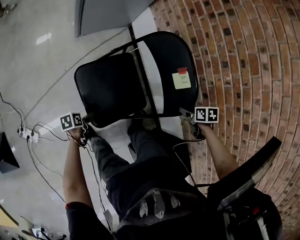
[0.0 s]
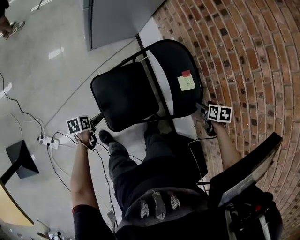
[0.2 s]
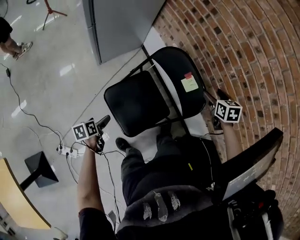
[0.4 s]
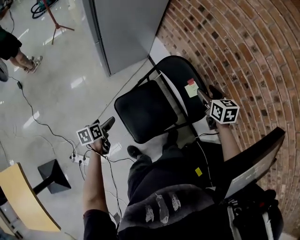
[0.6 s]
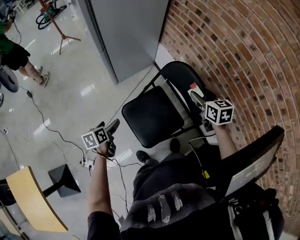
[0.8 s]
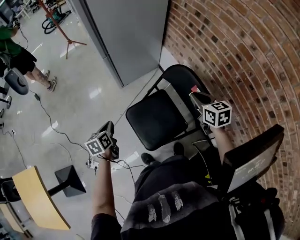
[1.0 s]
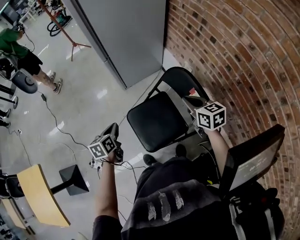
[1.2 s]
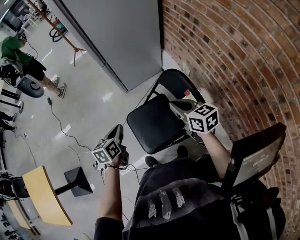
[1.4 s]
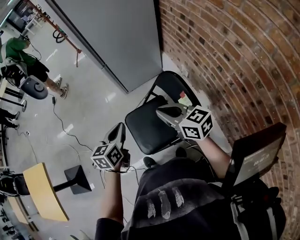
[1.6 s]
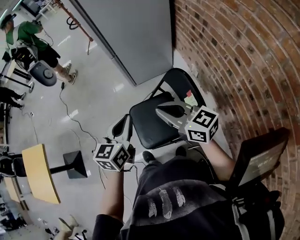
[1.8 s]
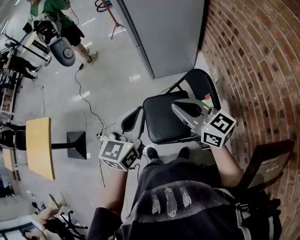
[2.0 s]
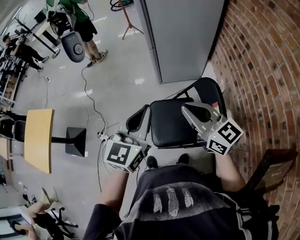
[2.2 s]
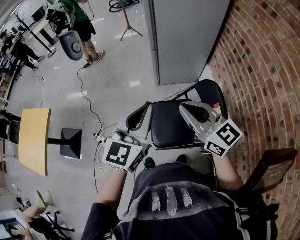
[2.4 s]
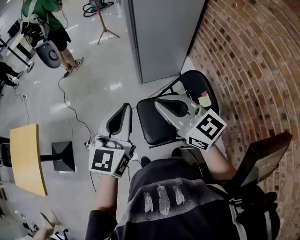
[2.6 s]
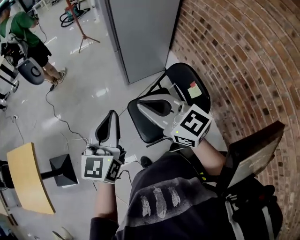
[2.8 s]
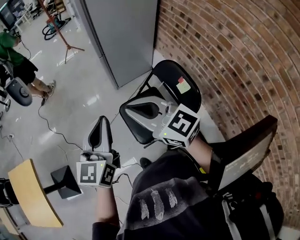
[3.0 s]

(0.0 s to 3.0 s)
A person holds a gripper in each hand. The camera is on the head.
0.0 s - 1.6 s: The right gripper shifts approximately 30 cm upward, points its fingers about 60 degrees further upward, and closes up. Meanwhile the left gripper moves upward, about 50 cm, rotates some 60 degrees, and closes its fingers.
1.6 s - 3.0 s: The left gripper travels upward, to the left and backward by some 20 cm, and swivels some 30 degrees; the right gripper is displaced to the left and upward by approximately 25 cm, and swivels roughly 20 degrees.

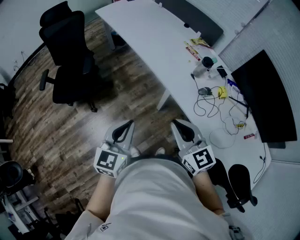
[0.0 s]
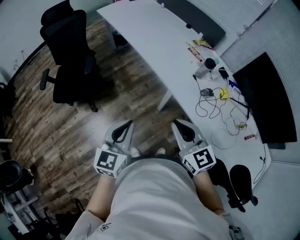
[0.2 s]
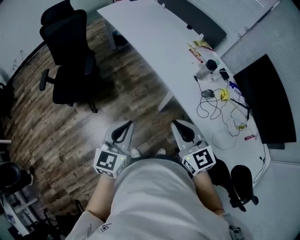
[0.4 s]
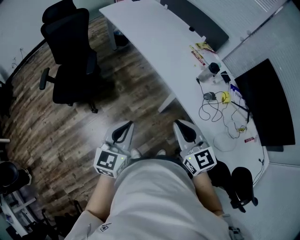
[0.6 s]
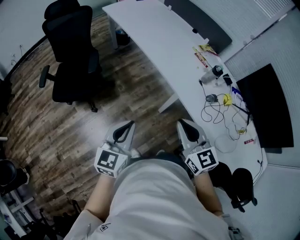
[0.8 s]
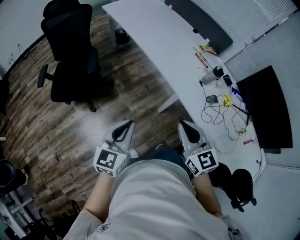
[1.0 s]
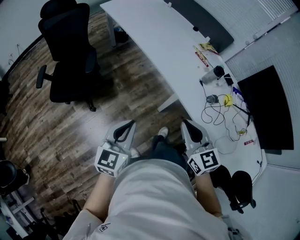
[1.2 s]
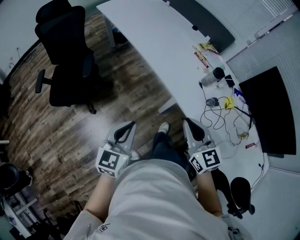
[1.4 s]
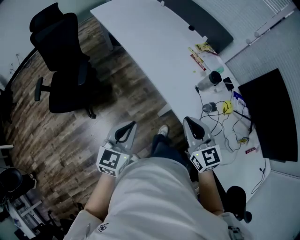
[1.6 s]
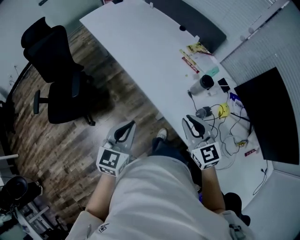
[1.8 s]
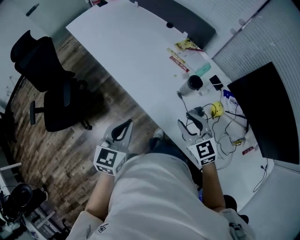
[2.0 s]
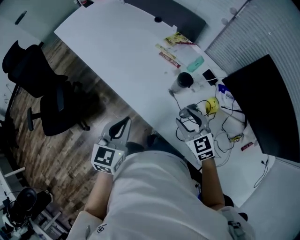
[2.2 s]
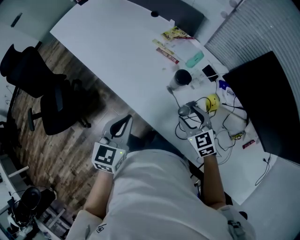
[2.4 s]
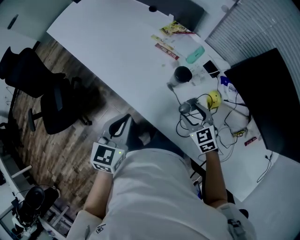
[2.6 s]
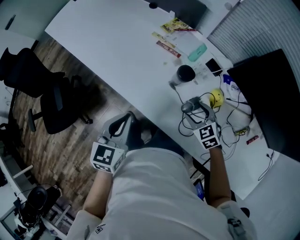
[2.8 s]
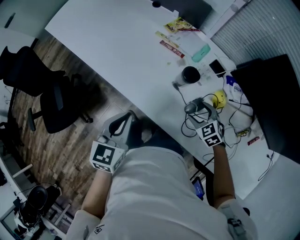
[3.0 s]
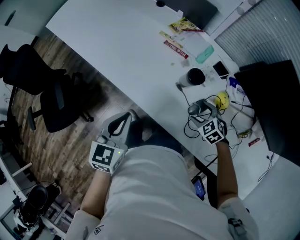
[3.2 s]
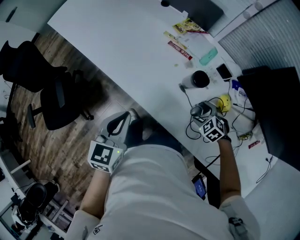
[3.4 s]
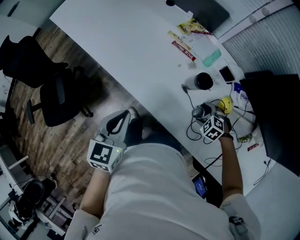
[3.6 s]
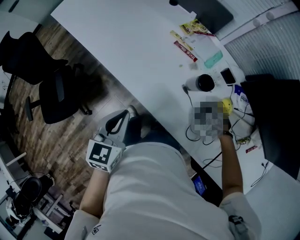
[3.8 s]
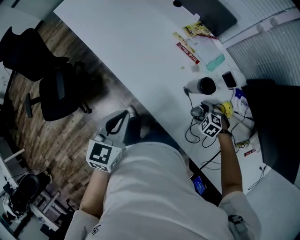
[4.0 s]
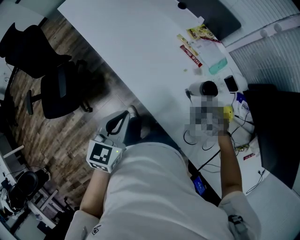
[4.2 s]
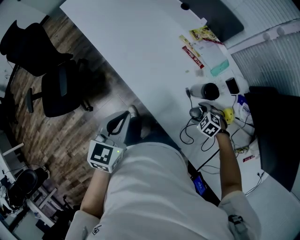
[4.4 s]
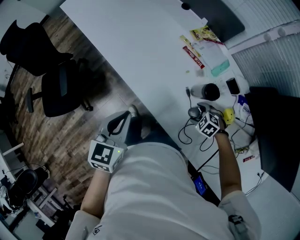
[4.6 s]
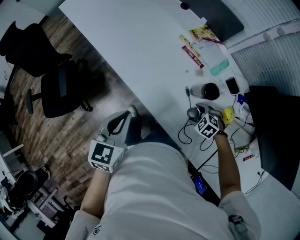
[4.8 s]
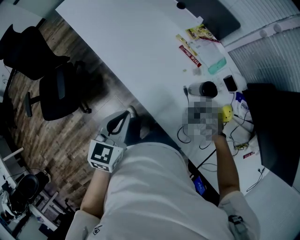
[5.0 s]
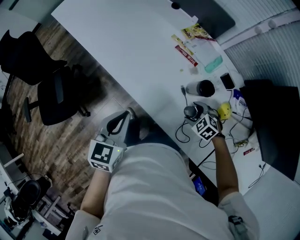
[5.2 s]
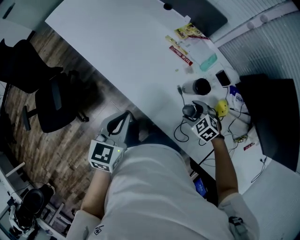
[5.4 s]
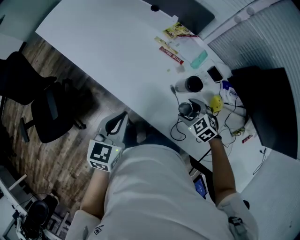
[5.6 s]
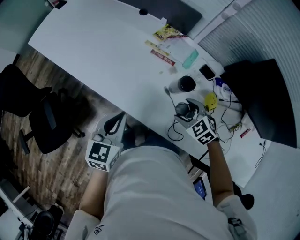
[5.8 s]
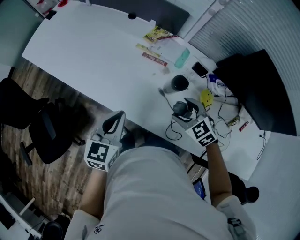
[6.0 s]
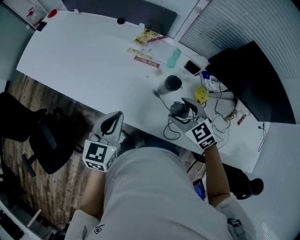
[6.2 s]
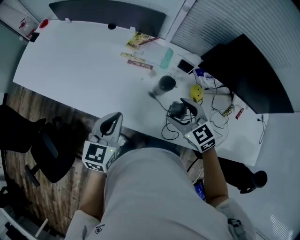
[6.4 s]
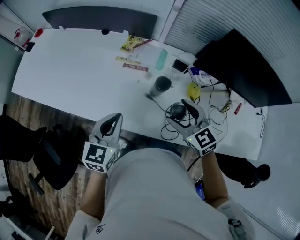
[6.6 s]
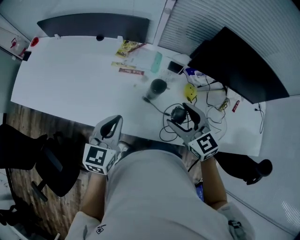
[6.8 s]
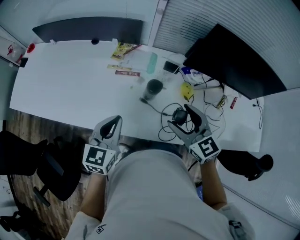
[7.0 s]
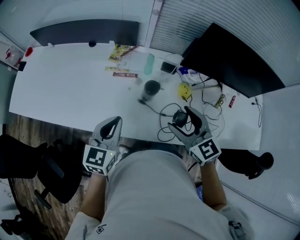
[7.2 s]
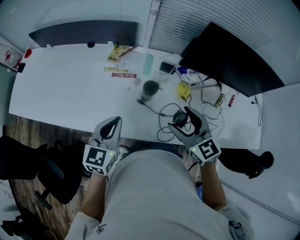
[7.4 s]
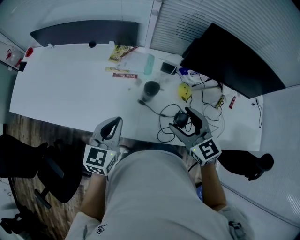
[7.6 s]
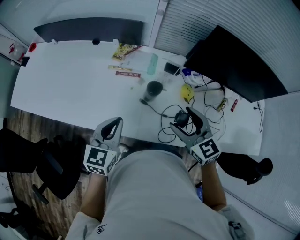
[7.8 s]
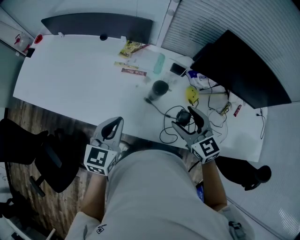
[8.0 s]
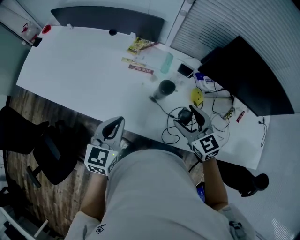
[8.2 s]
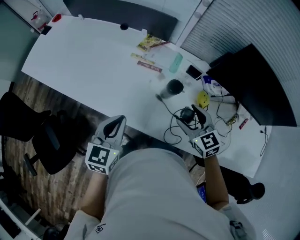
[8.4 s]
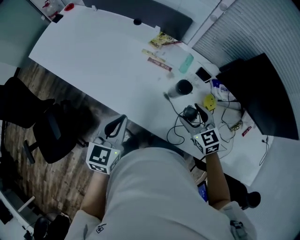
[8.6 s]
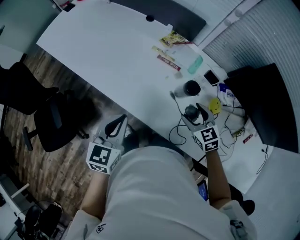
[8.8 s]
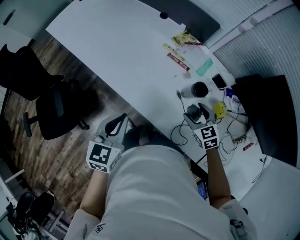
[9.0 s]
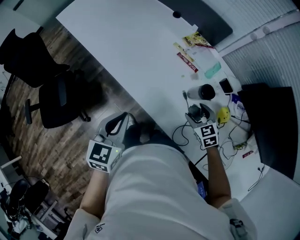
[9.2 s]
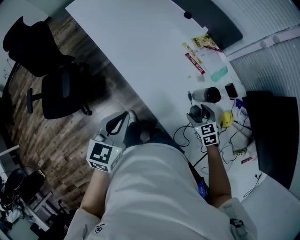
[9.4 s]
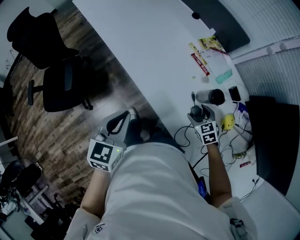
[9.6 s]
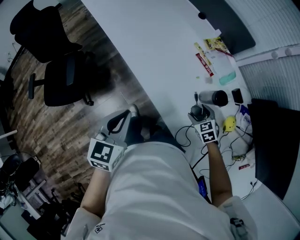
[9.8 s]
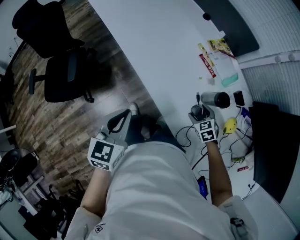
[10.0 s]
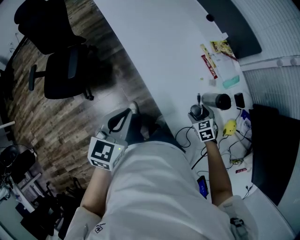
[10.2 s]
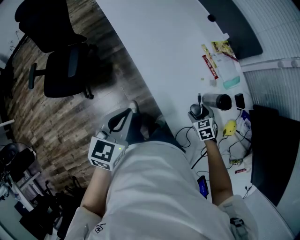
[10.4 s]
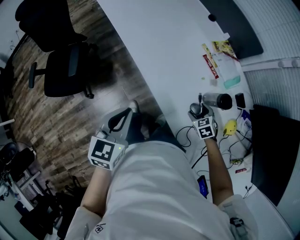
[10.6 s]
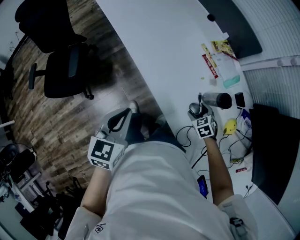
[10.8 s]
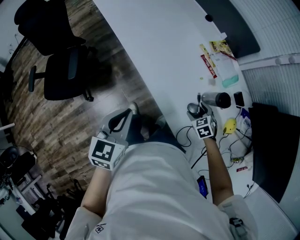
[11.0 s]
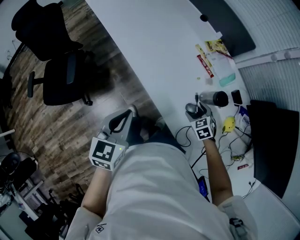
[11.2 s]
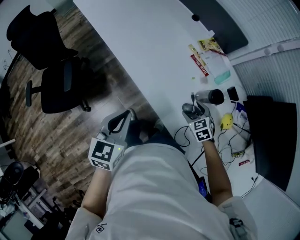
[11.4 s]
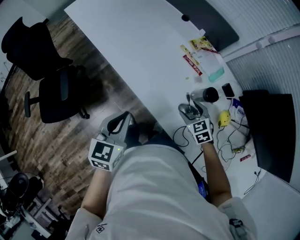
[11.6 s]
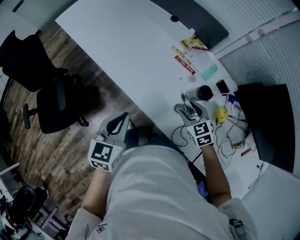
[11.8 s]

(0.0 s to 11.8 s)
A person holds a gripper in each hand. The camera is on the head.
0.0 s - 1.4 s: The grippers both shift forward by roughly 10 cm.
1.4 s - 3.0 s: The right gripper moves to the right, downward and forward, about 40 cm, angles its fingers downward, by roughly 40 degrees, and opens; the left gripper shifts approximately 30 cm forward and to the right.
3.0 s - 4.4 s: The right gripper moves downward, about 10 cm, and changes its angle by some 40 degrees. Meanwhile the left gripper changes place by some 5 cm.
4.4 s - 6.0 s: The left gripper moves some 5 cm, and swivels some 20 degrees. Meanwhile the right gripper travels upward by roughly 20 cm, and changes its angle by approximately 40 degrees.
6.0 s - 7.4 s: The right gripper moves upward, some 15 cm, and changes its angle by about 40 degrees; the left gripper shifts about 5 cm to the right.
7.4 s - 8.8 s: The left gripper is displaced to the left and backward by some 10 cm, and swivels some 30 degrees. Meanwhile the right gripper shifts about 15 cm downward, and turns by about 30 degrees.
8.8 s - 10.4 s: The right gripper goes approximately 15 cm downward, and rotates roughly 30 degrees. The left gripper travels to the left and backward by roughly 10 cm, and swivels roughly 20 degrees.
10.4 s - 11.8 s: The left gripper changes place by roughly 5 cm. The right gripper moves upward, roughly 15 cm, and rotates some 20 degrees.

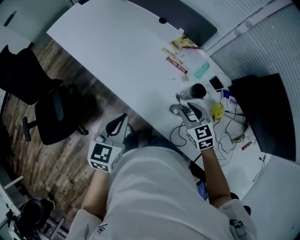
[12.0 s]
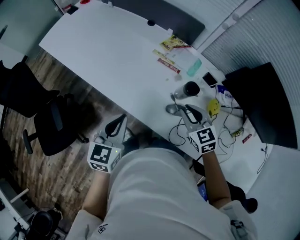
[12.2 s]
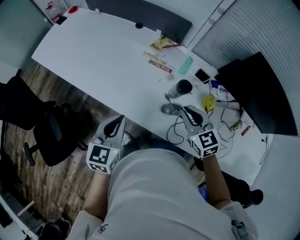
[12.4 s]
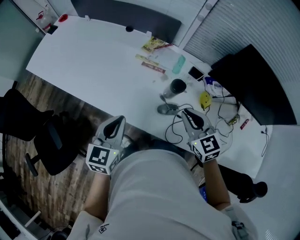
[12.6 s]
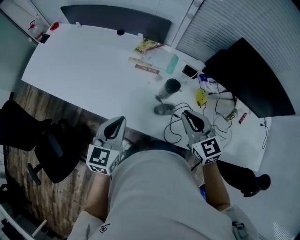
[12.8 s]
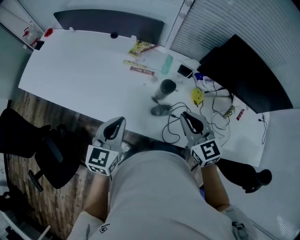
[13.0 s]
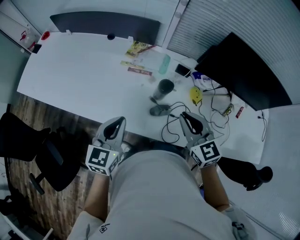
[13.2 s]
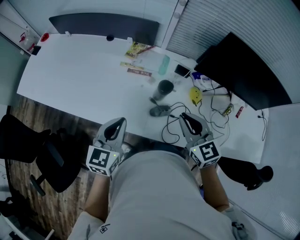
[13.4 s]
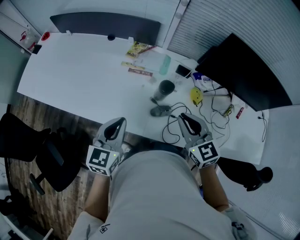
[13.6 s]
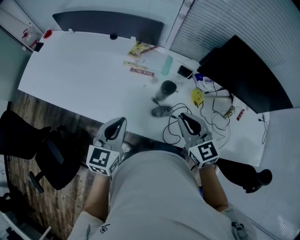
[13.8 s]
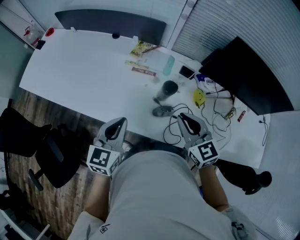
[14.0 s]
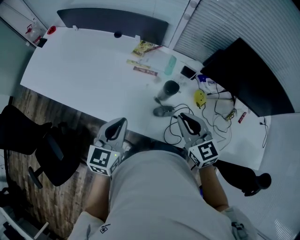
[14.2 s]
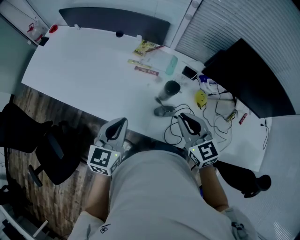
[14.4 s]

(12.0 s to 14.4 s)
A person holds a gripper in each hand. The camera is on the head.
12.0 s - 13.2 s: The right gripper goes approximately 15 cm upward, to the right and backward, swivels about 30 degrees, and closes its fingers. Meanwhile the left gripper heads to the right and forward, covering about 10 cm, and swivels roughly 20 degrees.
13.2 s - 14.4 s: The grippers move only a little.

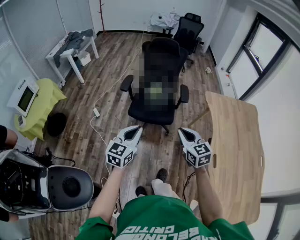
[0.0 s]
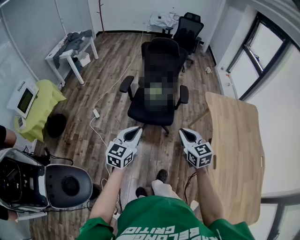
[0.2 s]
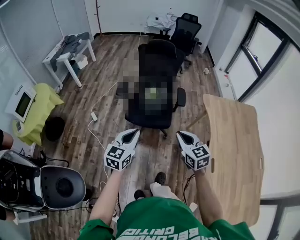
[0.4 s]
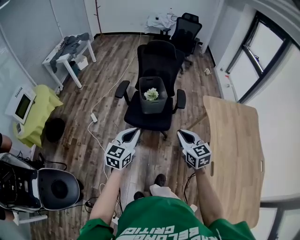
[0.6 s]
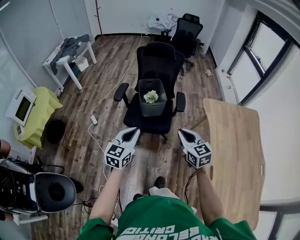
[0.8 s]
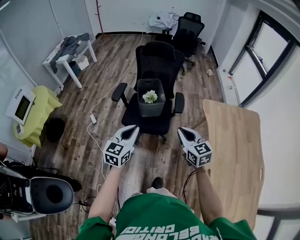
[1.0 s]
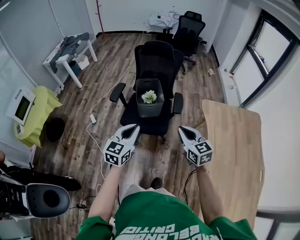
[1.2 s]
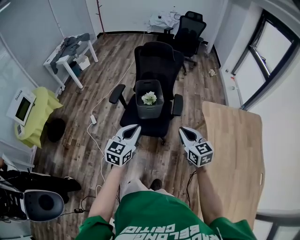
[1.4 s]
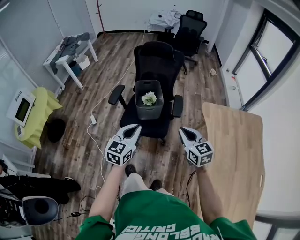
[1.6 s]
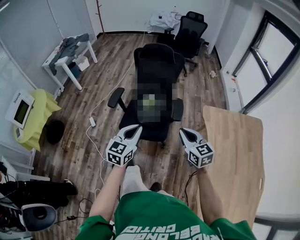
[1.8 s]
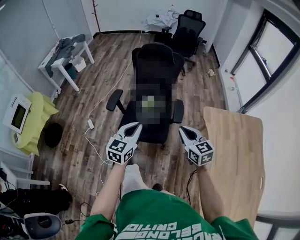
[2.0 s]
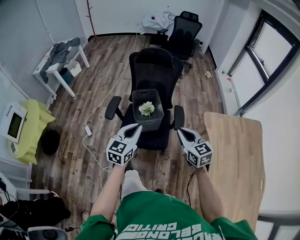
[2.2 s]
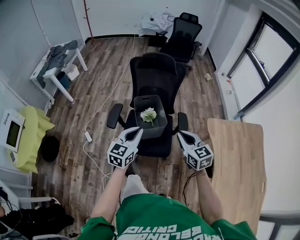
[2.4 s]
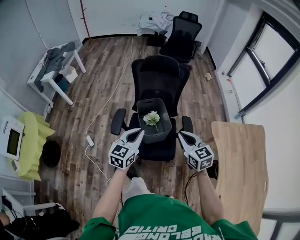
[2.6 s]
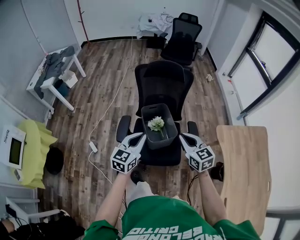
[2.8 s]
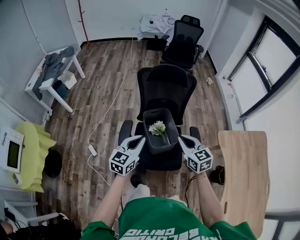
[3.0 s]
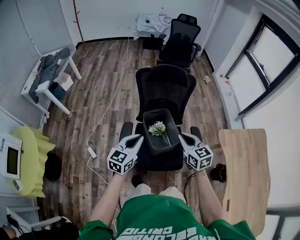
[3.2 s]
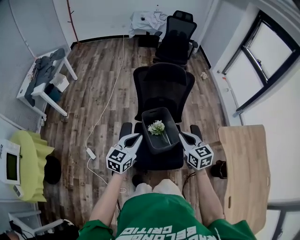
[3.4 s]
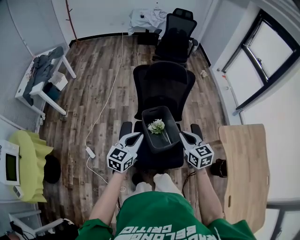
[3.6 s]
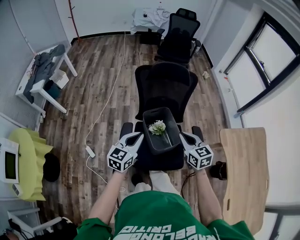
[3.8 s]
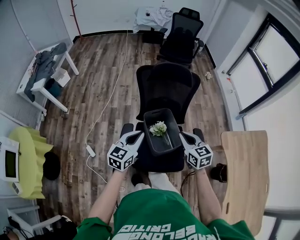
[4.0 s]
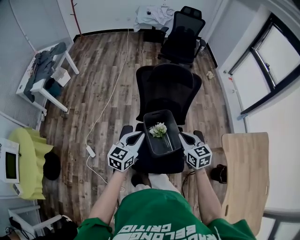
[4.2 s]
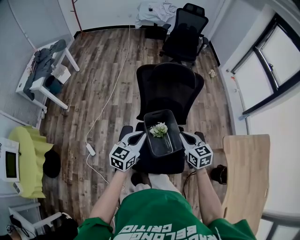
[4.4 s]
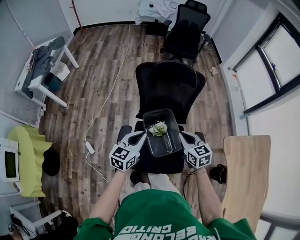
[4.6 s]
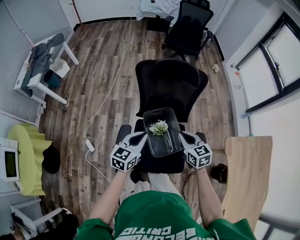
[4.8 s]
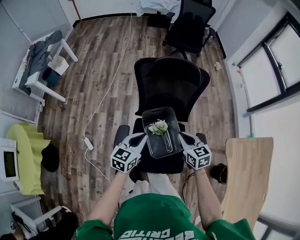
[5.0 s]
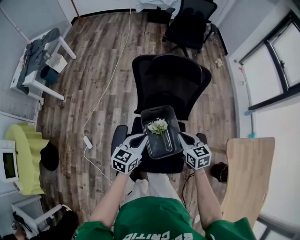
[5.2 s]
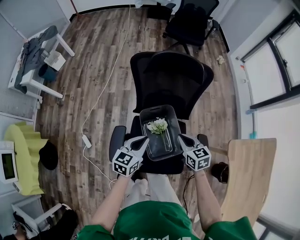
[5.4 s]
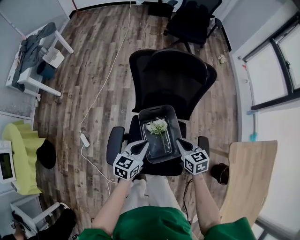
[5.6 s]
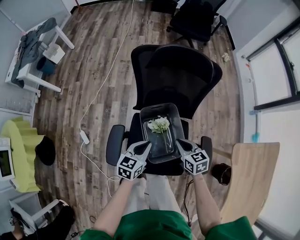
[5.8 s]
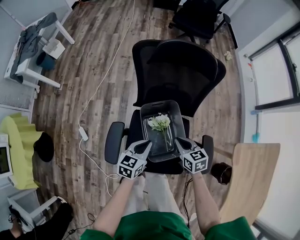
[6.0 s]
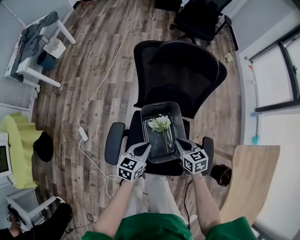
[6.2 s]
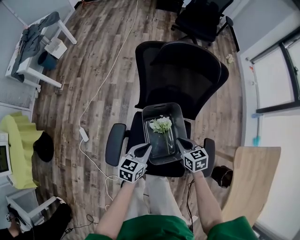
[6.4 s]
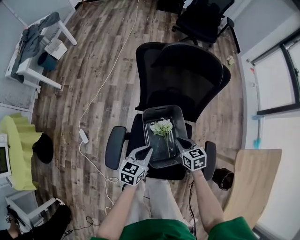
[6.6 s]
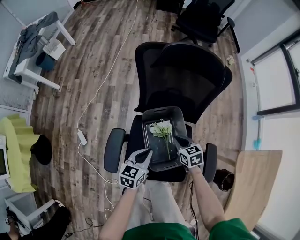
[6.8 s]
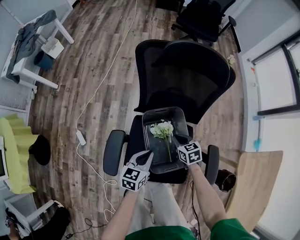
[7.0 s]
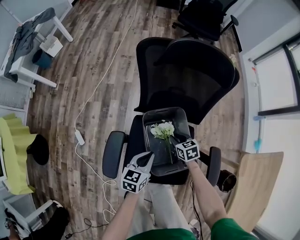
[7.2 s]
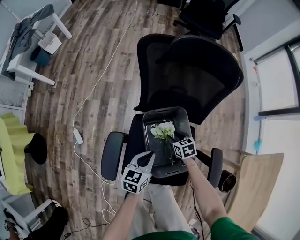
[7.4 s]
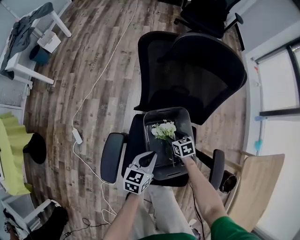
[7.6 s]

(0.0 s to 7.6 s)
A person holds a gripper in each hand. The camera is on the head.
0.0 s - 1.6 s: Both grippers travel together forward and to the right, some 20 cm.
1.6 s - 3.0 s: Both grippers travel together forward and to the left, some 35 cm.
3.0 s - 4.6 s: Both grippers move forward and downward, approximately 15 cm.
4.6 s - 6.0 s: Both grippers travel together downward, approximately 20 cm.
6.0 s - 7.6 s: The left gripper is displaced downward by about 10 cm, while the right gripper is displaced downward by roughly 25 cm, and opens up.
